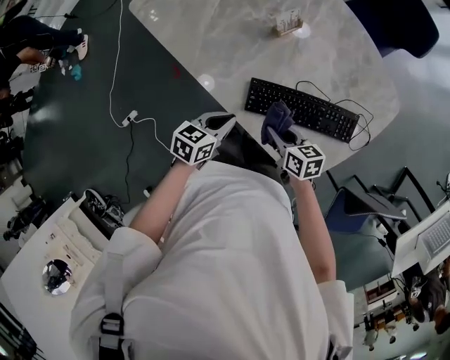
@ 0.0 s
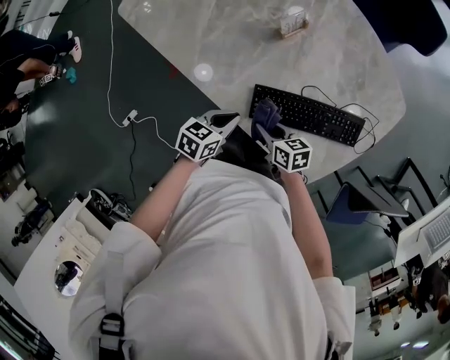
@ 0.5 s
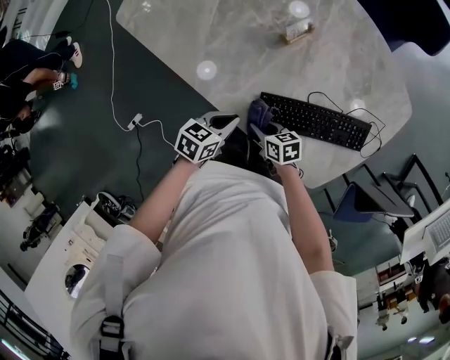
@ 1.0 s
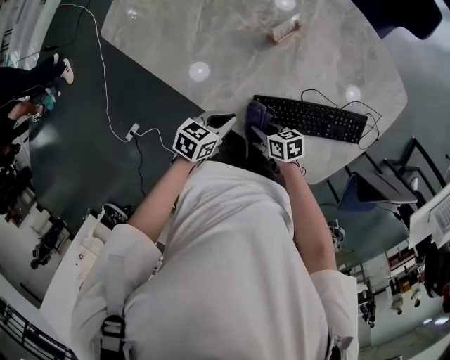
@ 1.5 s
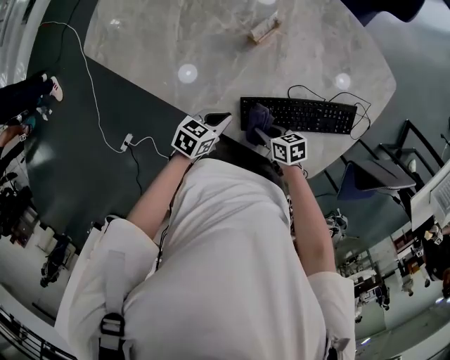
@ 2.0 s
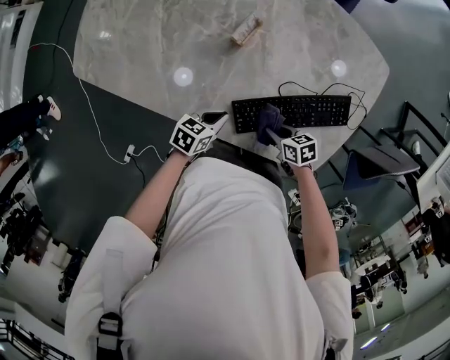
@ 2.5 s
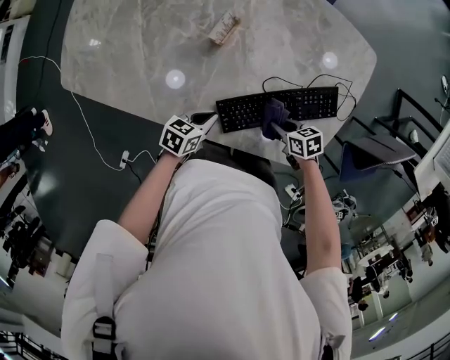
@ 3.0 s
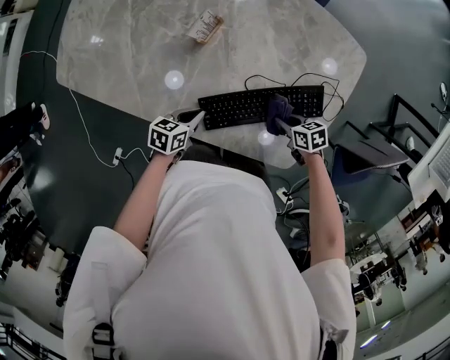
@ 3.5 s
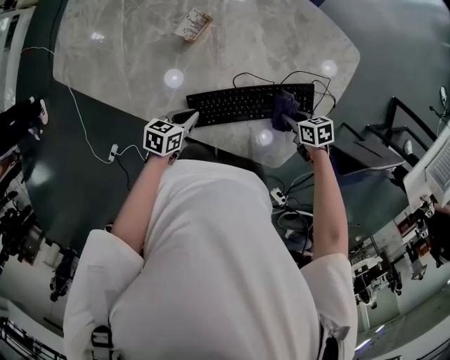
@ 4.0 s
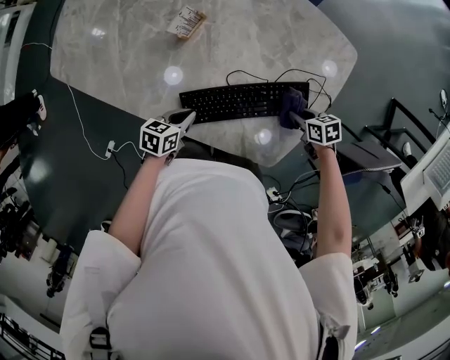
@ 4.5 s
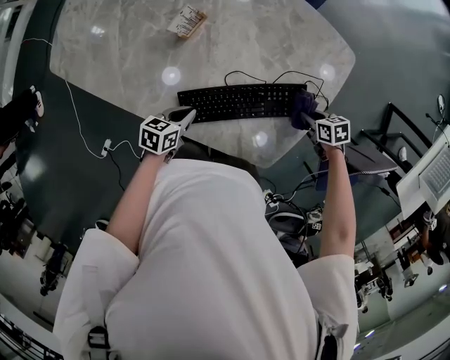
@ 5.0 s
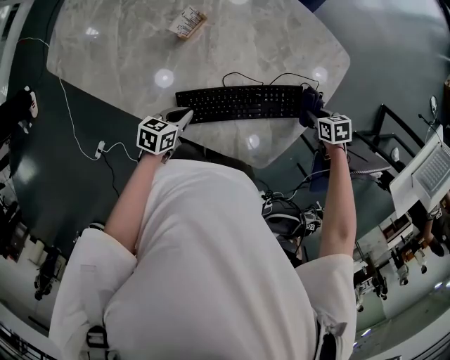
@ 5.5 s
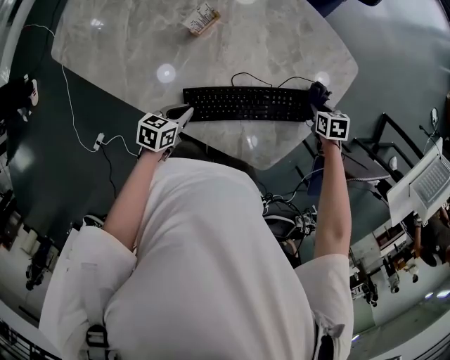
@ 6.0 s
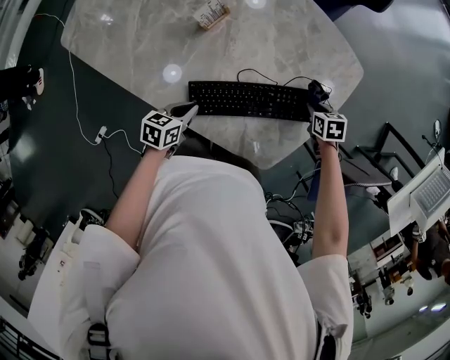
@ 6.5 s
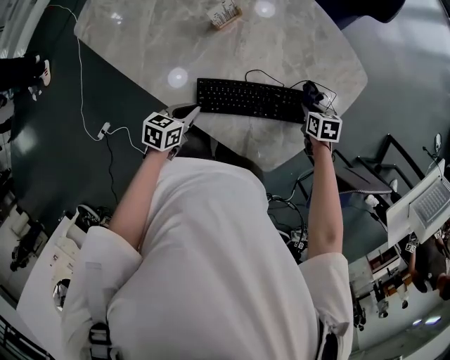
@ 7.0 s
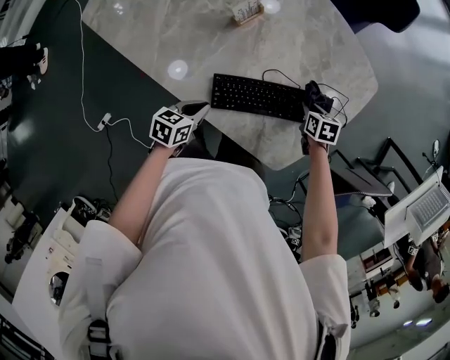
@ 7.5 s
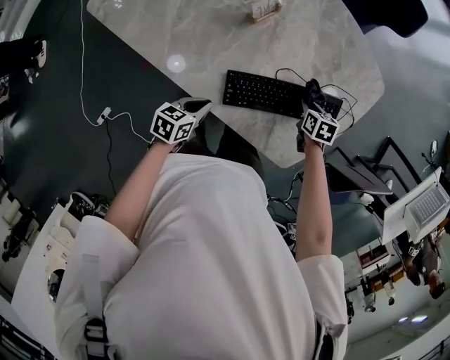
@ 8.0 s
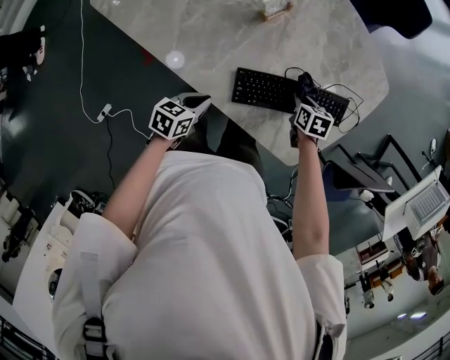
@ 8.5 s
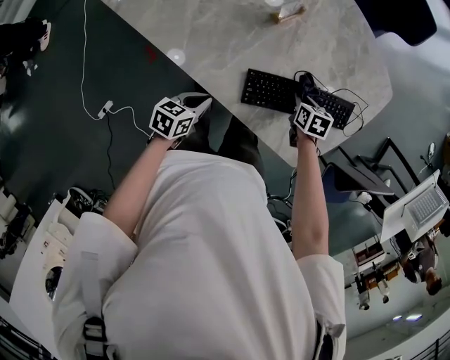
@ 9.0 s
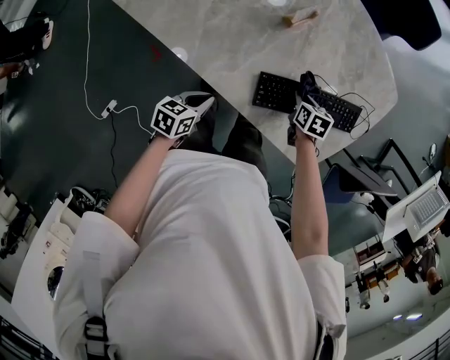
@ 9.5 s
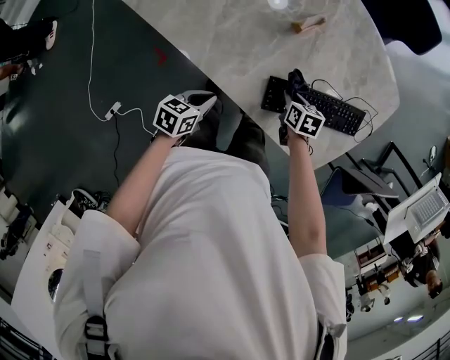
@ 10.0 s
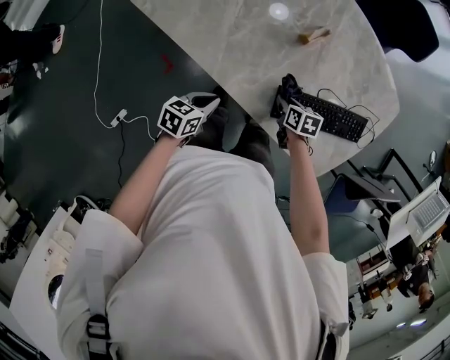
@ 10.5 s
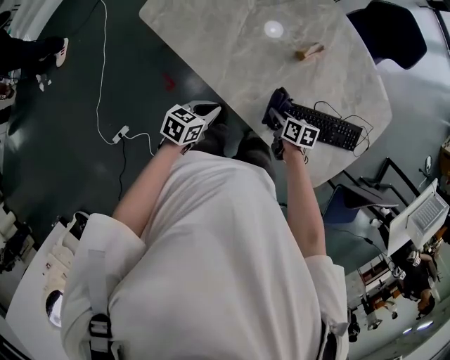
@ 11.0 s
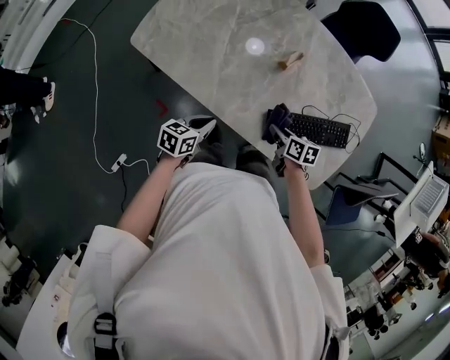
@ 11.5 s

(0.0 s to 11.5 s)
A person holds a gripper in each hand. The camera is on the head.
0.0 s - 2.0 s: Both grippers move downward, approximately 10 cm. The left gripper changes its angle by some 20 degrees.
2.0 s - 4.0 s: The left gripper shifts by approximately 5 cm. Meanwhile the right gripper shifts by roughly 25 cm.
4.0 s - 6.0 s: The right gripper changes place by about 15 cm, and swivels some 20 degrees.
6.0 s - 7.5 s: The right gripper heads to the left, covering about 10 cm. Meanwhile the left gripper shifts by approximately 5 cm.
7.5 s - 9.5 s: The two grippers go some 15 cm to the left.
9.5 s - 11.5 s: The grippers both shift to the left and upward by some 15 cm. The right gripper turns by approximately 20 degrees.

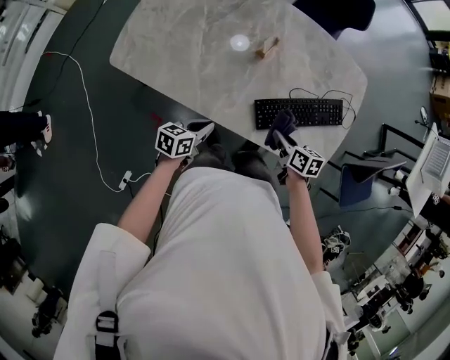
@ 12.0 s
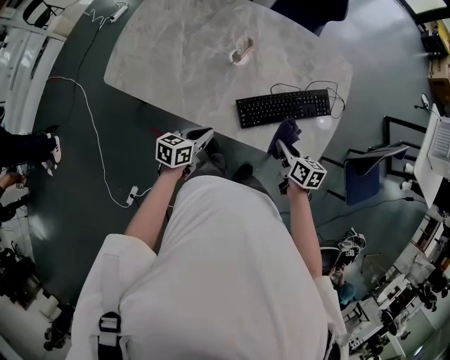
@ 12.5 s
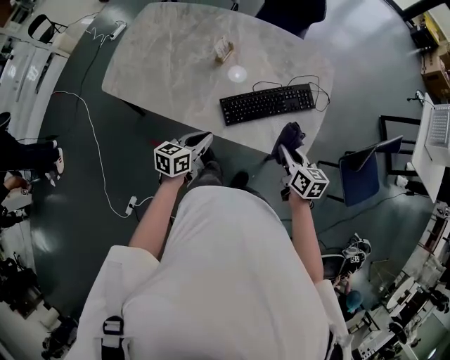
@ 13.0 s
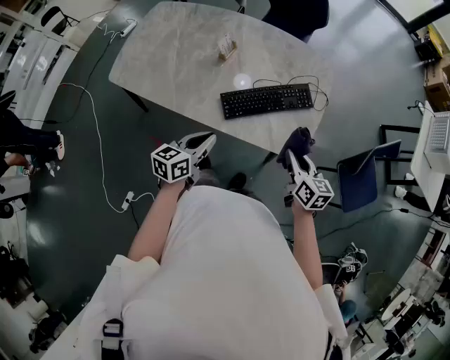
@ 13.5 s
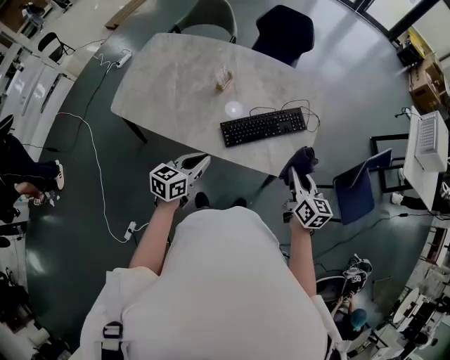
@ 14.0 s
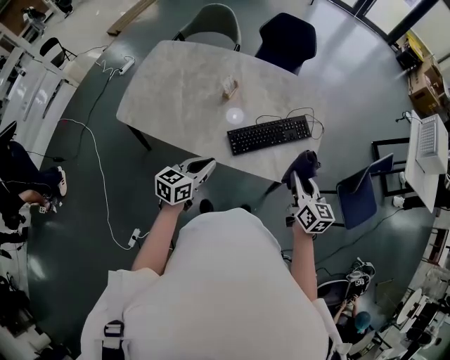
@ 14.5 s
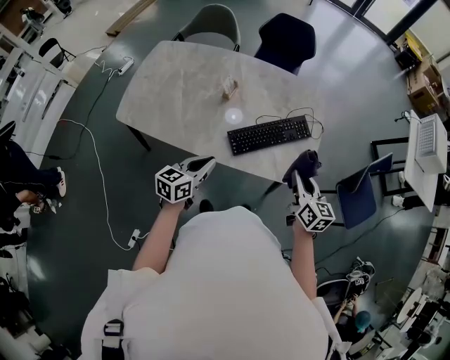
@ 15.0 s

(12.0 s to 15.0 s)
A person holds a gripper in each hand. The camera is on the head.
12.0 s - 13.5 s: Both grippers move to the right, upward and backward, roughly 25 cm. The right gripper turns by approximately 30 degrees.
13.5 s - 15.0 s: The left gripper goes approximately 5 cm to the left, while the right gripper travels upward by roughly 5 cm.

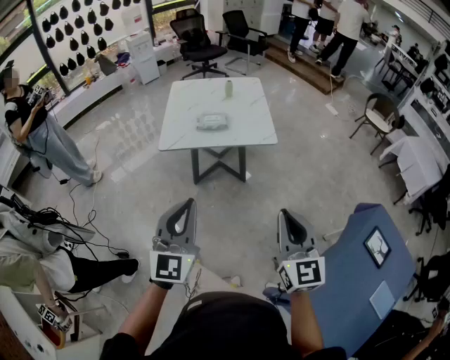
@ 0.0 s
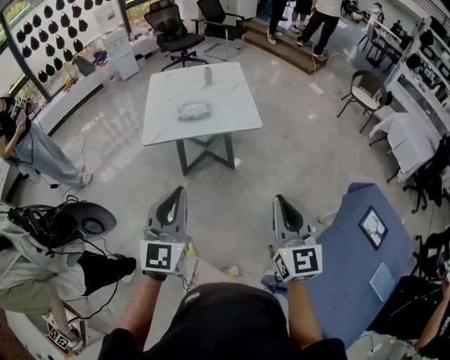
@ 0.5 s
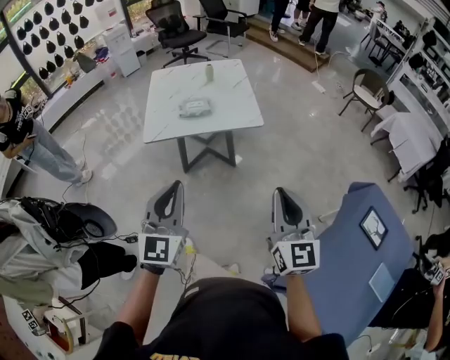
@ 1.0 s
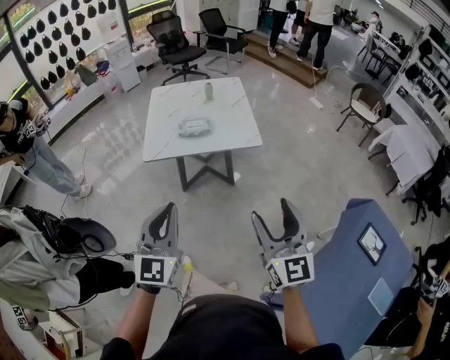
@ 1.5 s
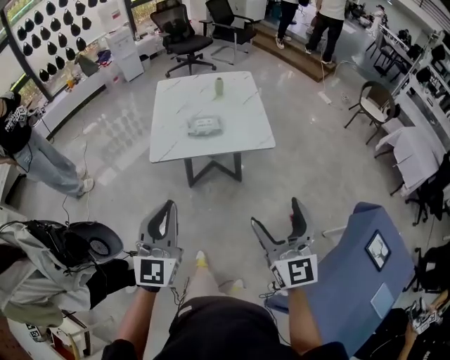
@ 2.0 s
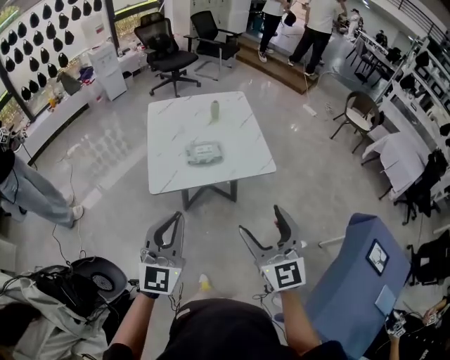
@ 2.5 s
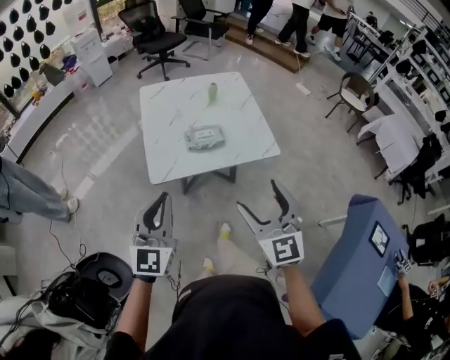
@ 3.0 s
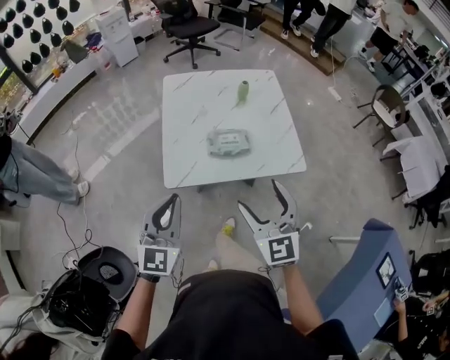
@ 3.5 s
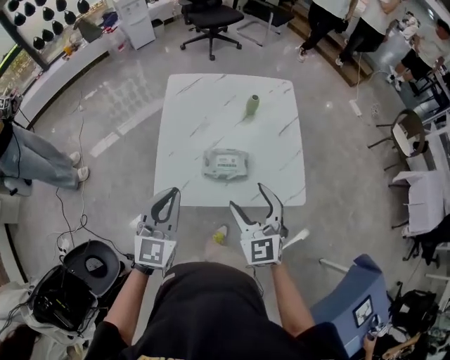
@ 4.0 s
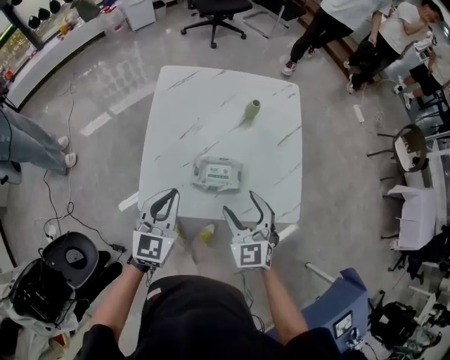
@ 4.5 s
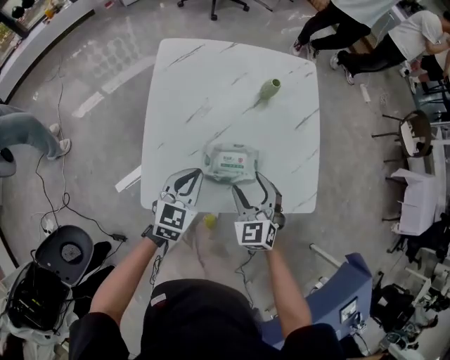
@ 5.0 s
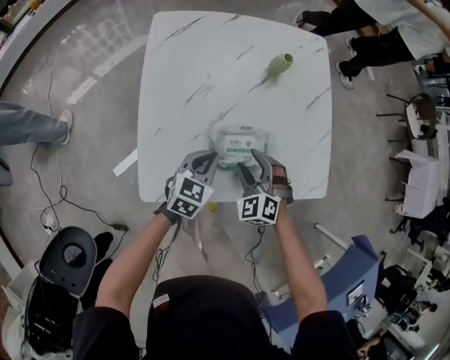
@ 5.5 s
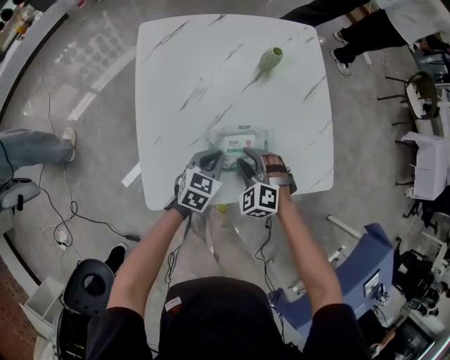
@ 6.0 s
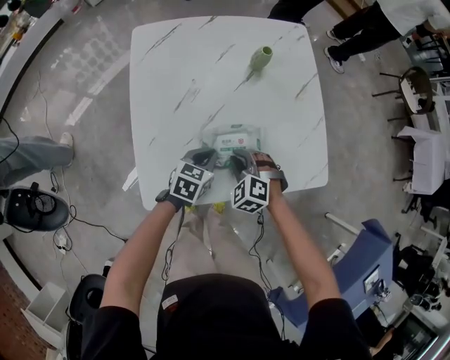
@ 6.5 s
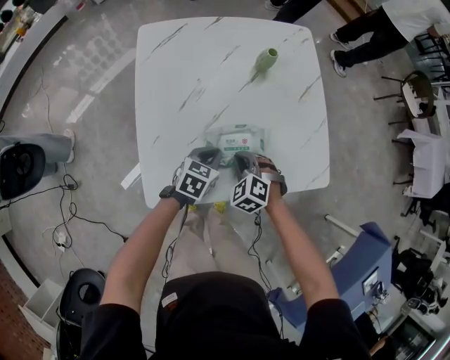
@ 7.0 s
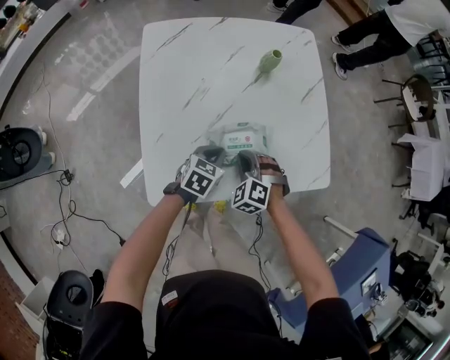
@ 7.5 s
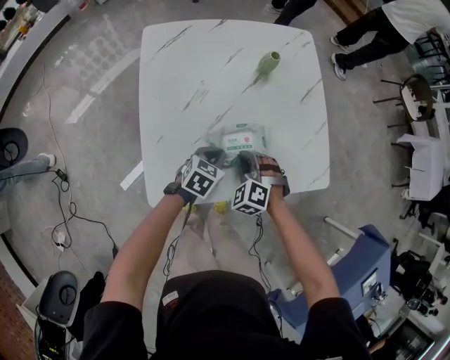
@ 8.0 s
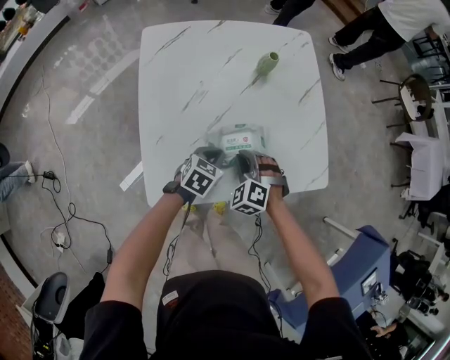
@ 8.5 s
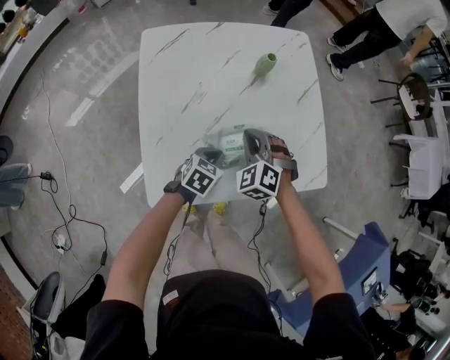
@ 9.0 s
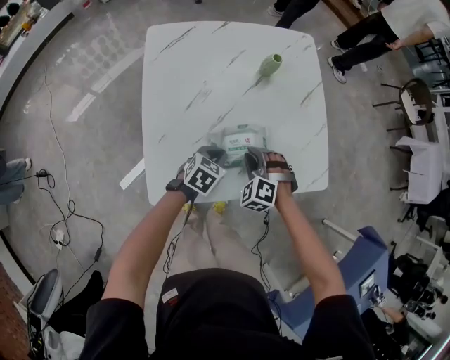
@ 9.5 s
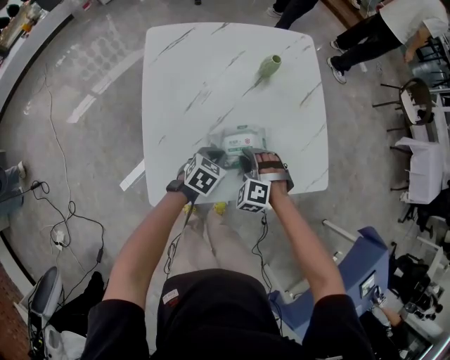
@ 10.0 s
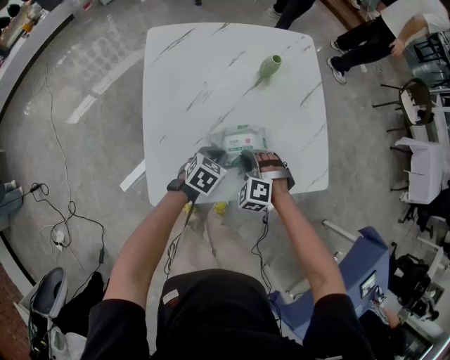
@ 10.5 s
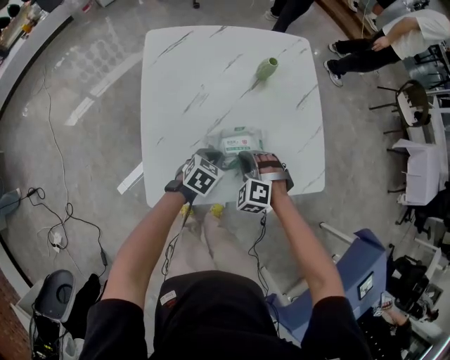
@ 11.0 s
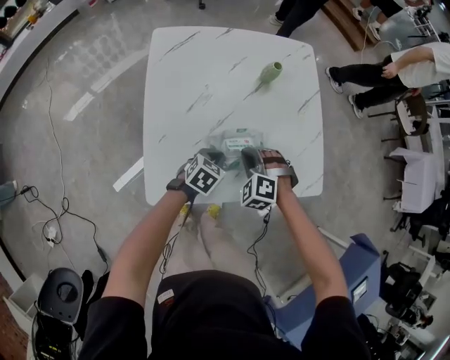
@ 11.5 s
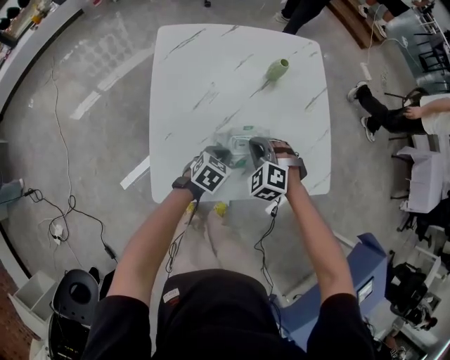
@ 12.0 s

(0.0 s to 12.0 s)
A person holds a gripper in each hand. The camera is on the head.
0.0 s - 2.0 s: The grippers both shift forward and to the left by about 15 cm. The right gripper opens.
2.0 s - 4.0 s: Both grippers are carried forward, some 50 cm. The right gripper rotates about 30 degrees.
4.0 s - 6.0 s: Both grippers travel together downward and forward, about 35 cm. The left gripper tips its fingers downward by roughly 30 degrees. Meanwhile the right gripper tips its fingers downward by some 30 degrees, and closes up.
6.0 s - 8.0 s: The grippers make only small movements.
8.0 s - 10.0 s: The right gripper travels upward and back again, about 5 cm each way.
10.0 s - 12.0 s: The right gripper moves roughly 5 cm.
